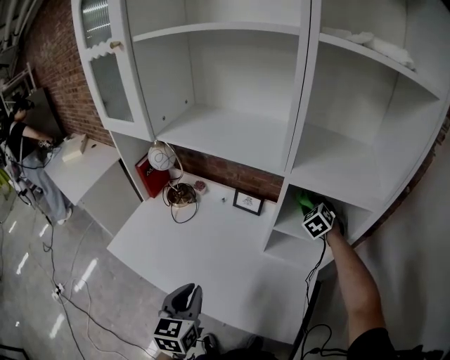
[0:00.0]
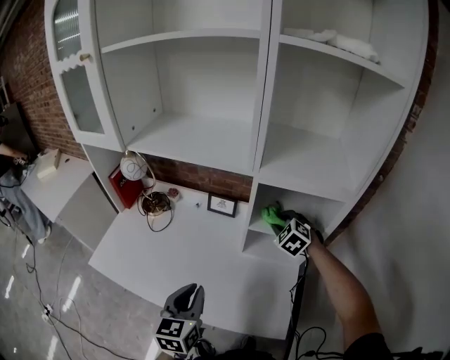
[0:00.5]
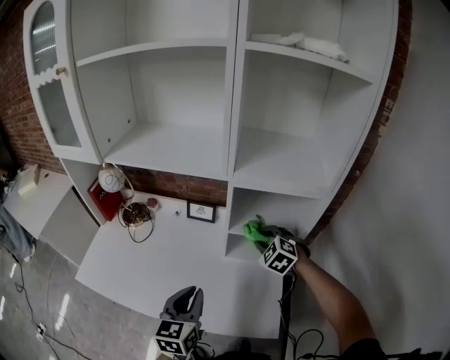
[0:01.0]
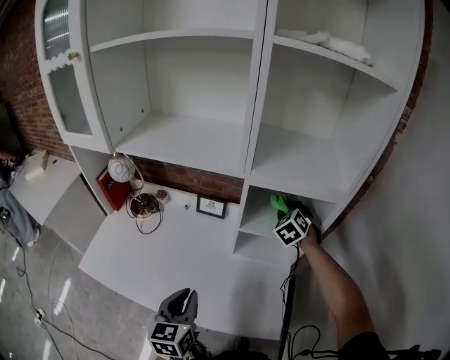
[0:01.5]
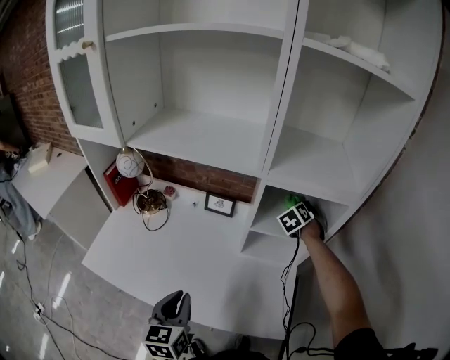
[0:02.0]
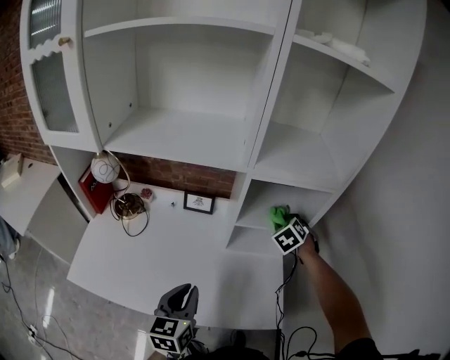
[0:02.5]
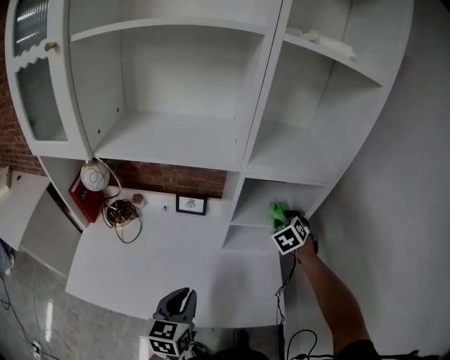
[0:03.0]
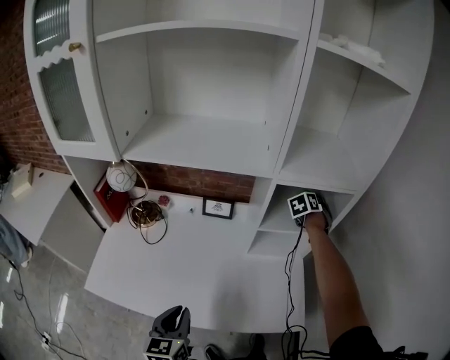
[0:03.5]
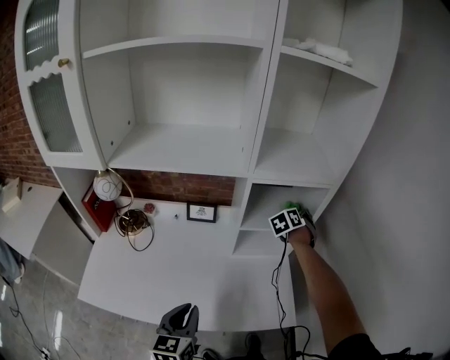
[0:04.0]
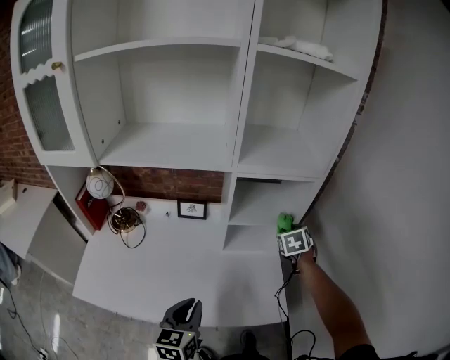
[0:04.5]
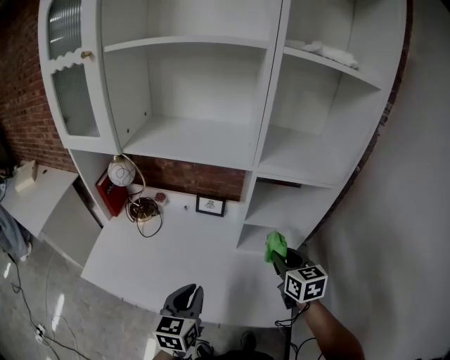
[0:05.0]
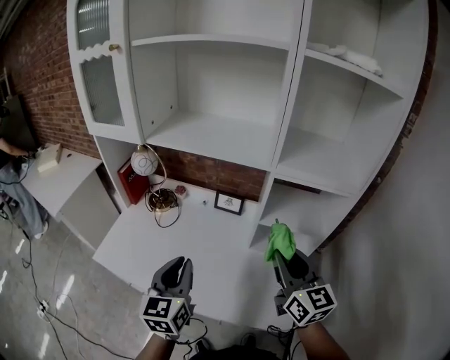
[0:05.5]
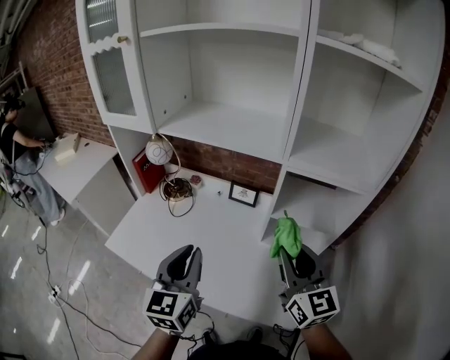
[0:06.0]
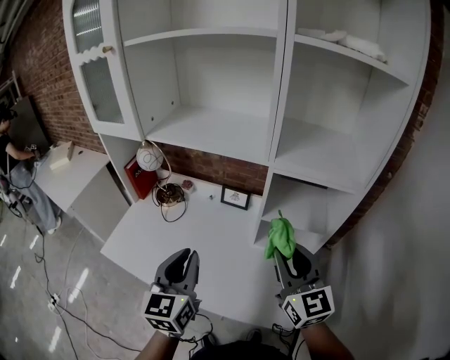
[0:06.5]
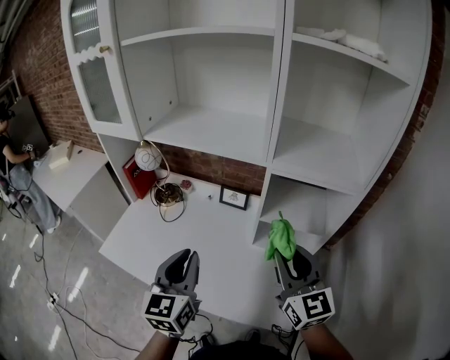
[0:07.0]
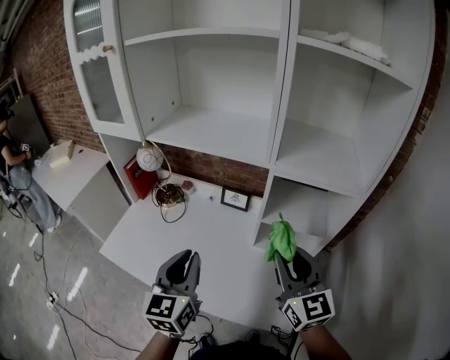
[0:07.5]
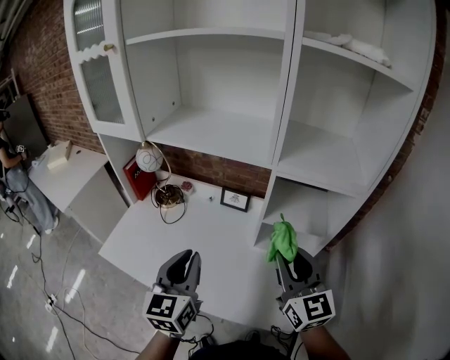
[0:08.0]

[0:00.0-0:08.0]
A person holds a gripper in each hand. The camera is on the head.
0:00.0 to 0:02.0: The right gripper is displaced to the right by some 5 cm, reaches approximately 15 cm backward, then returns, and turns by some 20 degrees. Meanwhile the left gripper moves some 10 cm to the right and comes back.
0:02.0 to 0:04.0: The right gripper moves forward and backward over about 10 cm, changing direction 2 times, and rotates some 20 degrees.
0:04.0 to 0:06.0: The right gripper ends up approximately 35 cm from where it was, and points its fingers about 40 degrees further upward. Meanwhile the left gripper goes approximately 15 cm upward, and turns by some 30 degrees.
0:06.0 to 0:08.0: The grippers make only small movements.

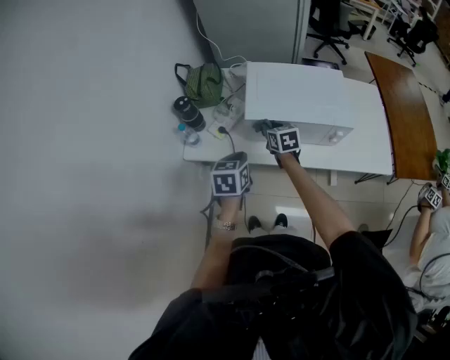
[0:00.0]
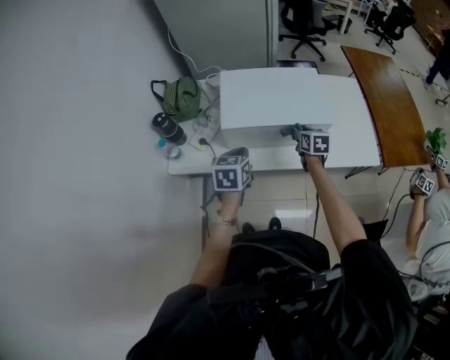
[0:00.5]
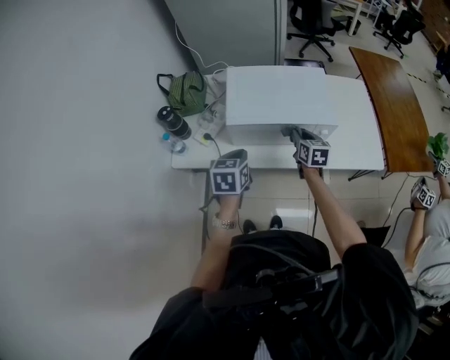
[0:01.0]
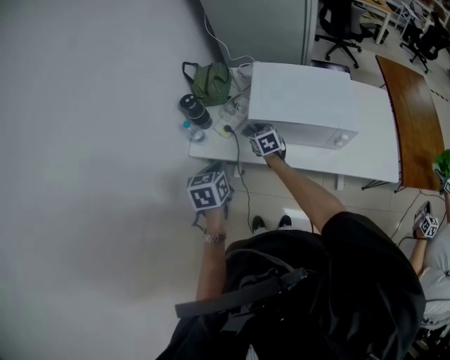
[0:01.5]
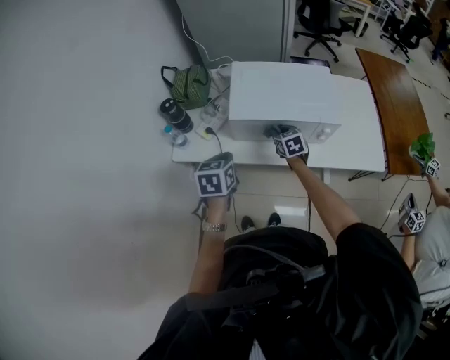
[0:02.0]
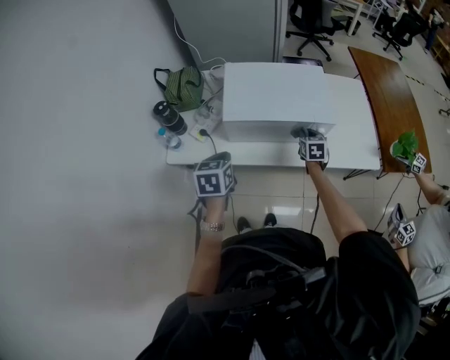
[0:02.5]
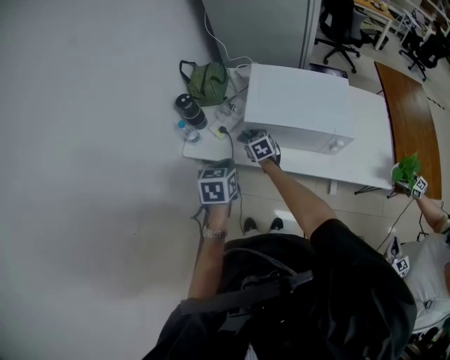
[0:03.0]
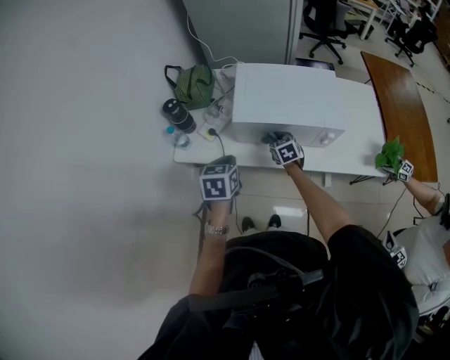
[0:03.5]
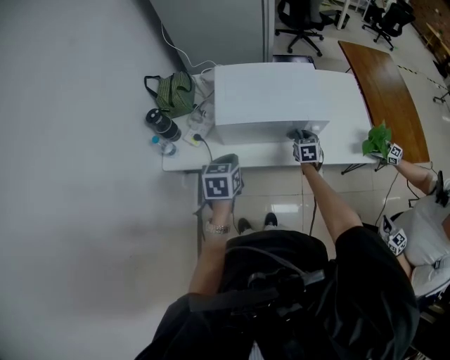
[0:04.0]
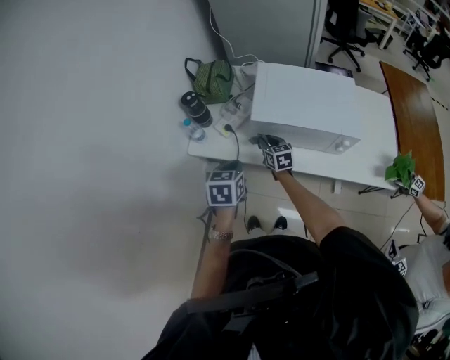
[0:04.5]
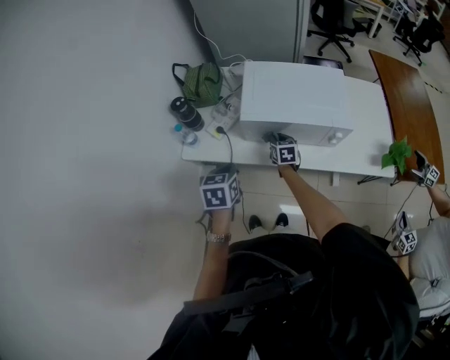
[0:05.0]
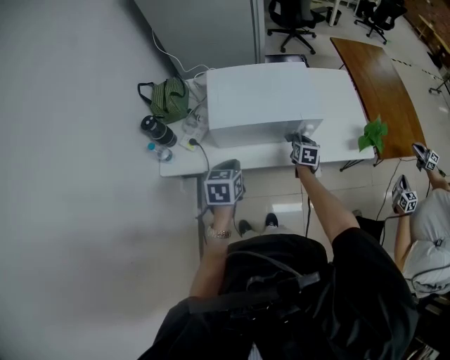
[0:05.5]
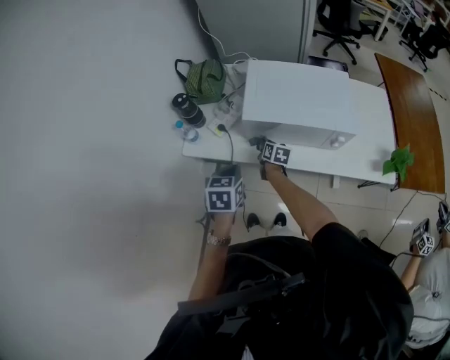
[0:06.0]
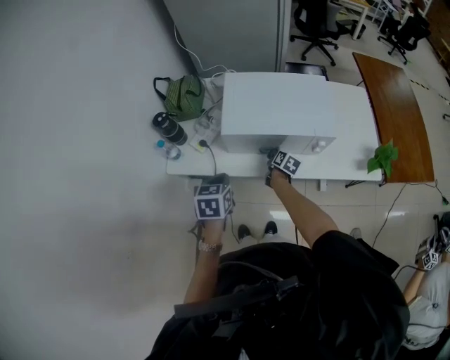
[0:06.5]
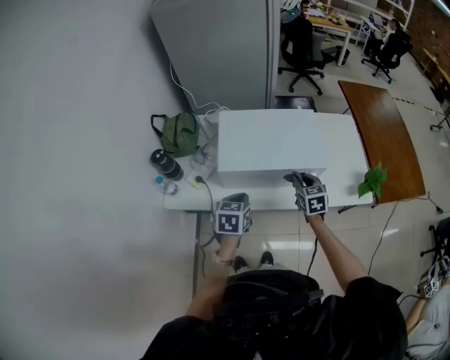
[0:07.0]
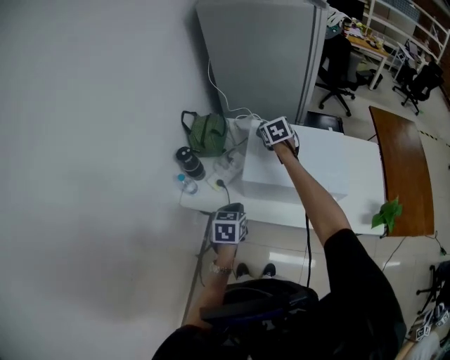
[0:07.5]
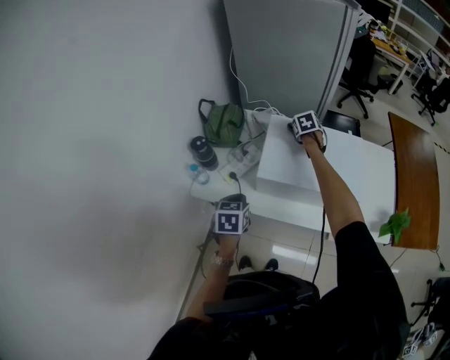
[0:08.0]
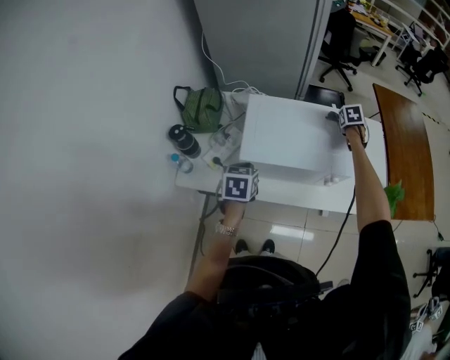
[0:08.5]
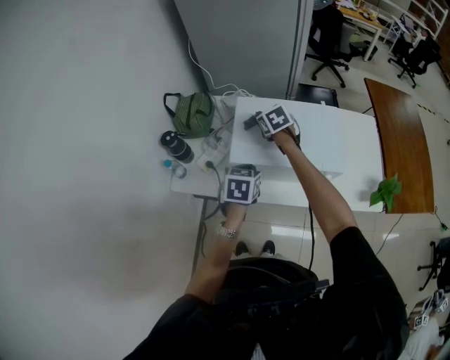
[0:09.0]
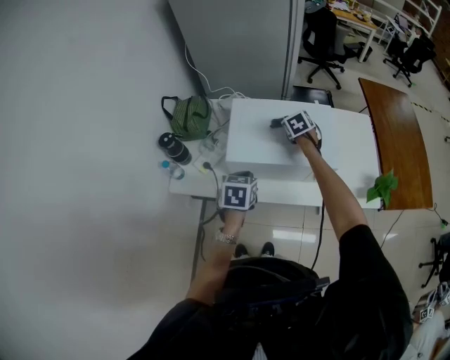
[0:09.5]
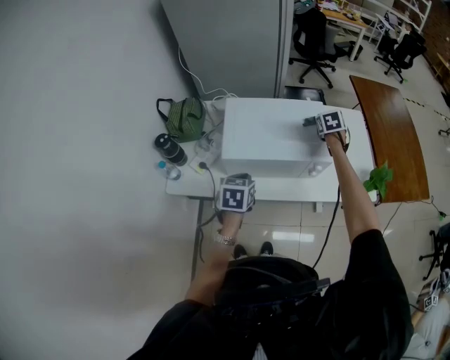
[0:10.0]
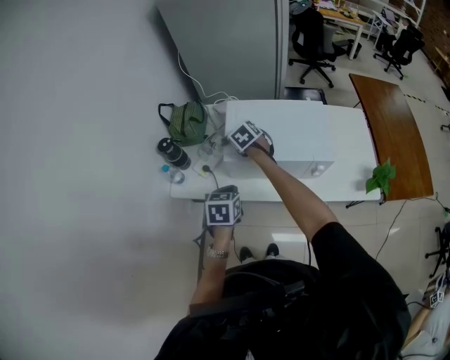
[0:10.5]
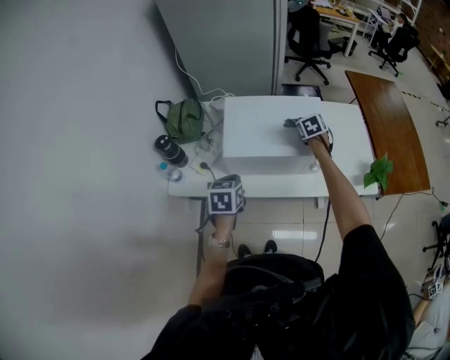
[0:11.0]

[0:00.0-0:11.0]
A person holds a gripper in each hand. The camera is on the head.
0:00.0 to 0:02.0: The right gripper moves left and right over roughly 30 cm, changing direction 2 times. The left gripper swings left and right, about 15 cm each way, with 2 reversals.
0:02.0 to 0:03.5: The right gripper goes left and right, roughly 35 cm each way, reversing 2 times.
0:03.5 to 0:05.5: The right gripper ends up some 20 cm from where it was, and rotates some 40 degrees. The left gripper changes place by roughly 10 cm.
0:05.5 to 0:07.5: The left gripper swings left and right, some 10 cm each way, with 2 reversals, while the right gripper goes left and right, about 30 cm each way, reversing 2 times, and turns by roughly 40 degrees.
0:07.5 to 0:09.0: The right gripper moves about 35 cm to the right and comes back, while the left gripper heads forward and to the right, covering about 10 cm.
0:09.0 to 0:11.0: The left gripper ends up about 10 cm from where it was.

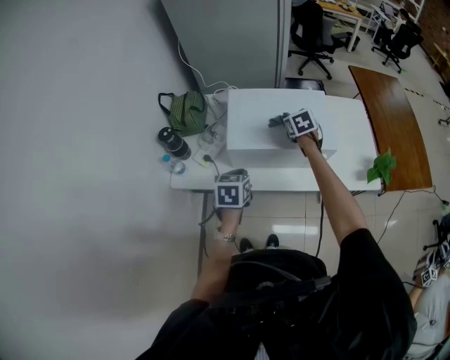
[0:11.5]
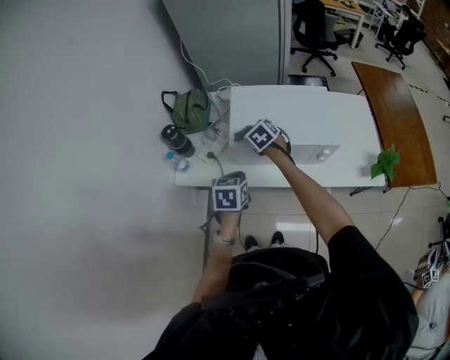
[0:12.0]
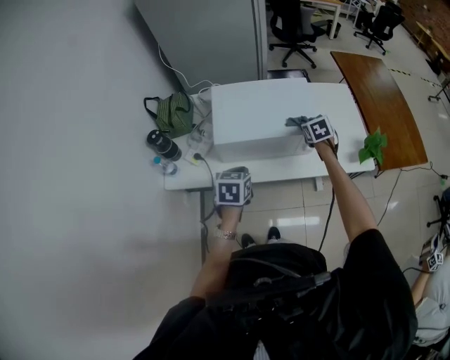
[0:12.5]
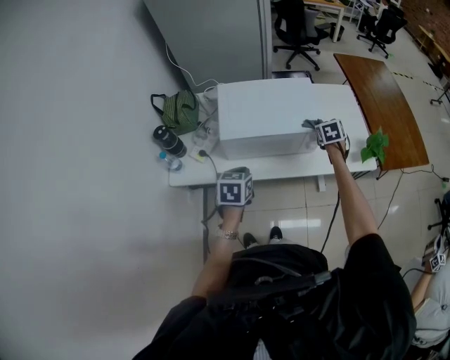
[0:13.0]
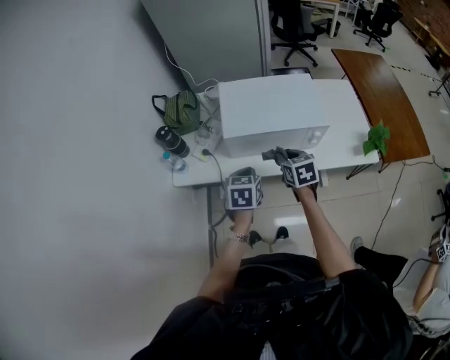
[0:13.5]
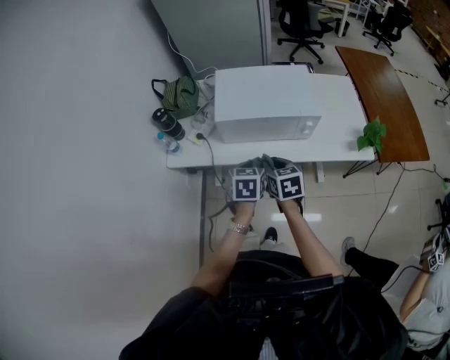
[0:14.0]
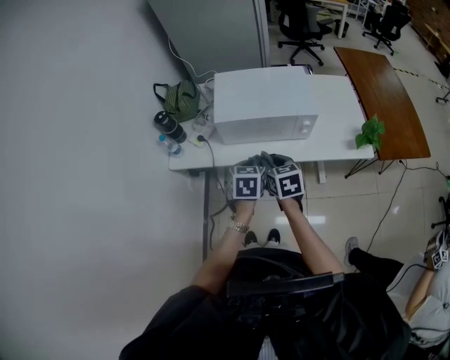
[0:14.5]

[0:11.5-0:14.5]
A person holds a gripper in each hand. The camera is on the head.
0:11.5 to 0:13.0: The left gripper changes place by roughly 5 cm. Meanwhile the right gripper shifts roughly 20 cm to the right.
0:13.0 to 0:14.5: The right gripper shifts roughly 30 cm backward and to the left, and swivels approximately 30 degrees. Meanwhile the left gripper shifts about 10 cm backward and to the right.

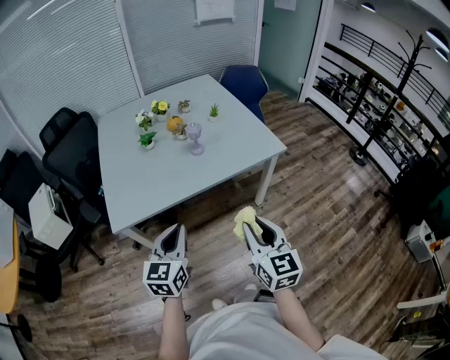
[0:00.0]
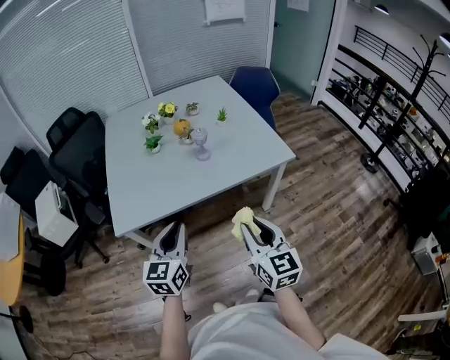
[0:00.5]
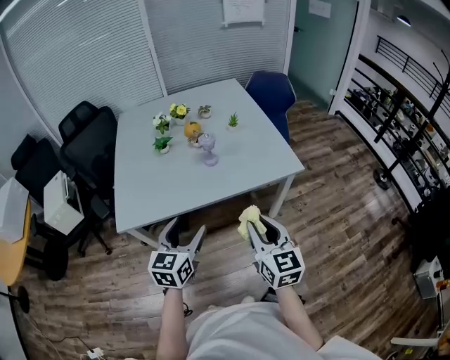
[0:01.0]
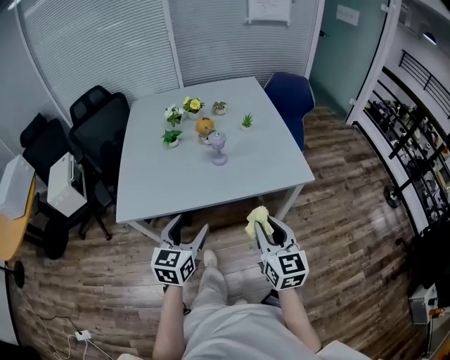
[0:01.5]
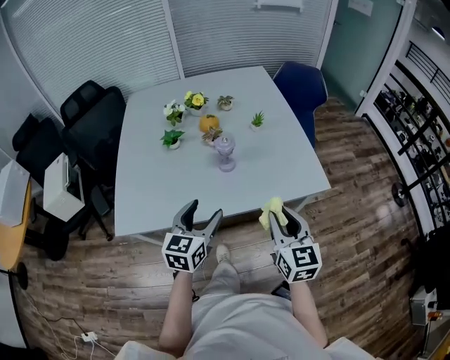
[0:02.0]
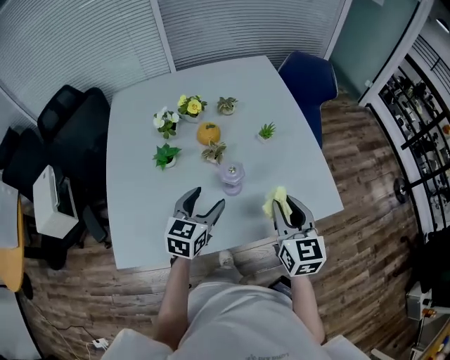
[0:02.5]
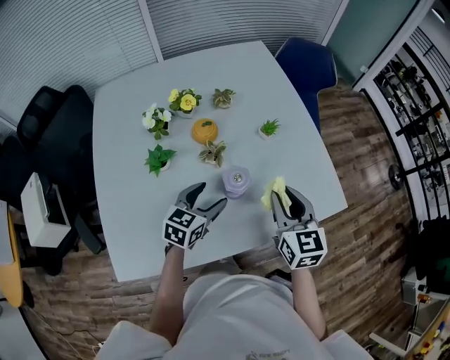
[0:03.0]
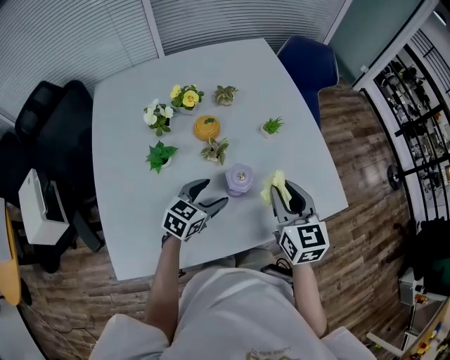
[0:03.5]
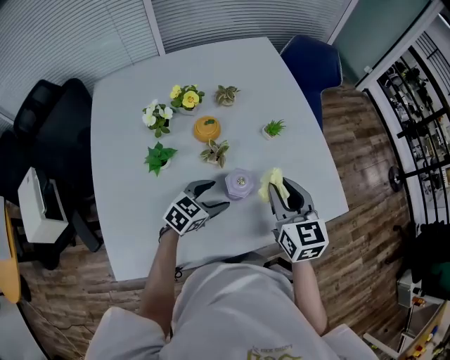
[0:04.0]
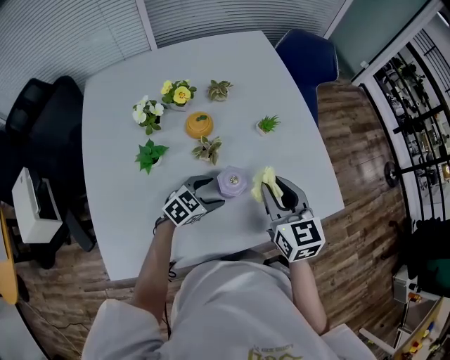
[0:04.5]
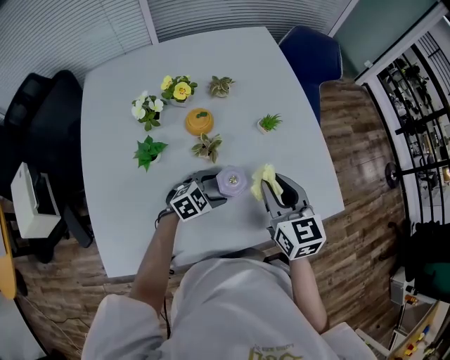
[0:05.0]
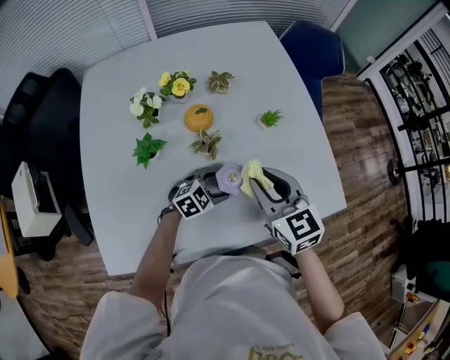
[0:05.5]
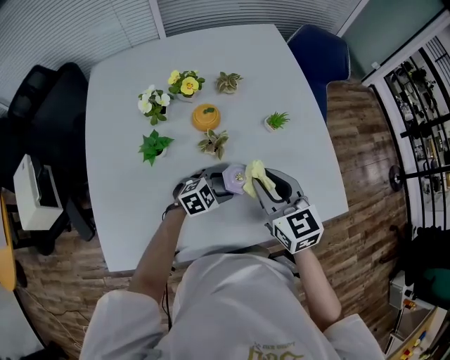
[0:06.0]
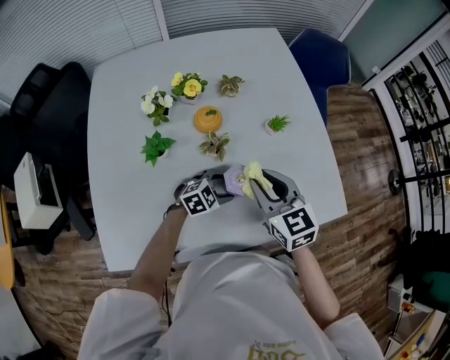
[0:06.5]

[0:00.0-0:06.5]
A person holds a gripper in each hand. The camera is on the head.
0:00.0 to 0:02.0: Both grippers travel together forward, about 25 cm. The left gripper opens up.
0:02.0 to 0:04.5: The left gripper moves forward and downward, approximately 30 cm, and swivels roughly 50 degrees; the right gripper heads forward and to the left, covering roughly 30 cm.
0:04.5 to 0:06.5: The right gripper goes roughly 5 cm to the left.
